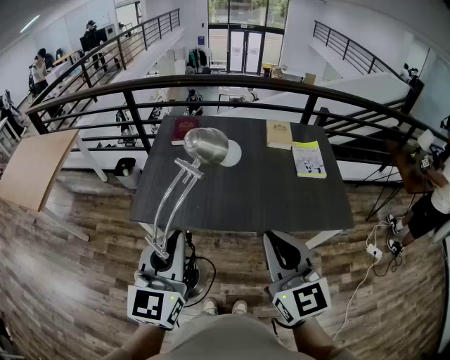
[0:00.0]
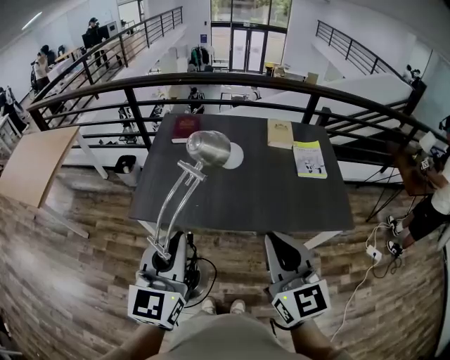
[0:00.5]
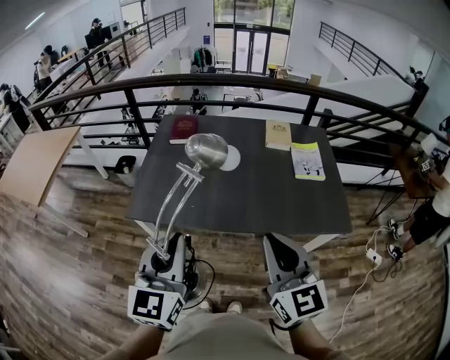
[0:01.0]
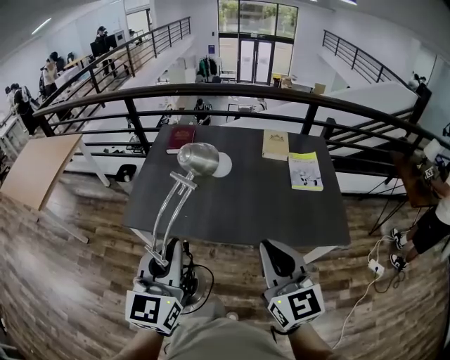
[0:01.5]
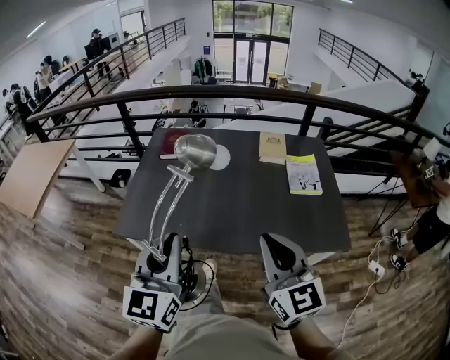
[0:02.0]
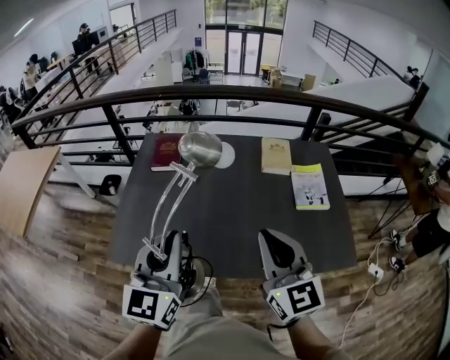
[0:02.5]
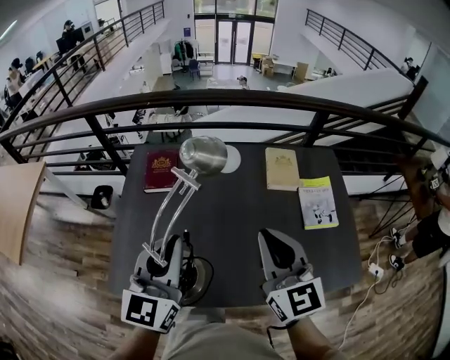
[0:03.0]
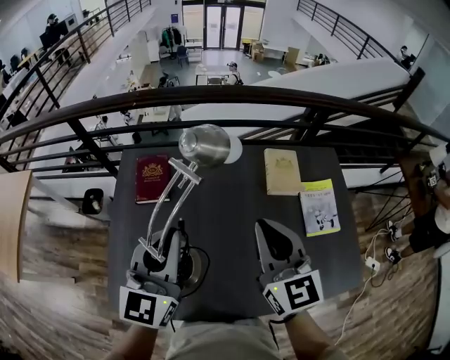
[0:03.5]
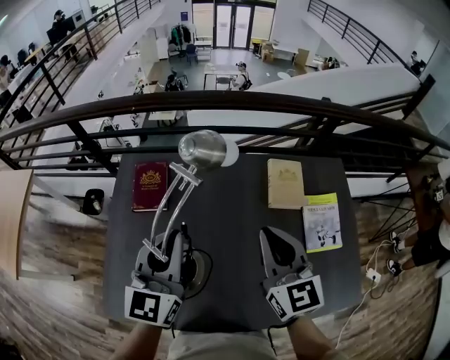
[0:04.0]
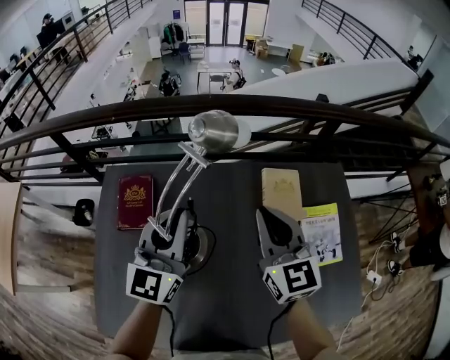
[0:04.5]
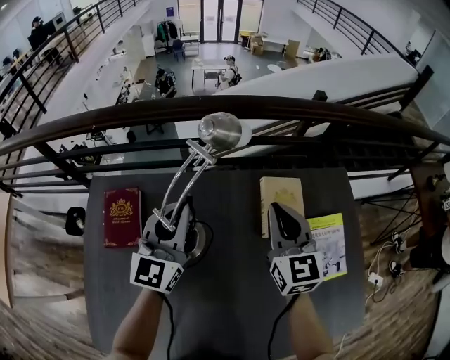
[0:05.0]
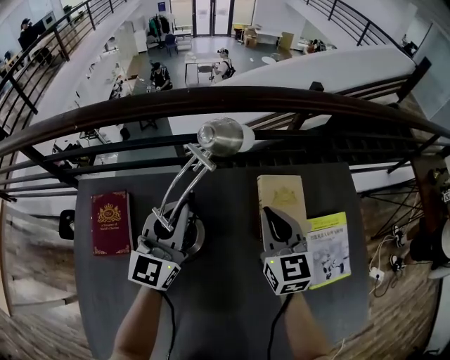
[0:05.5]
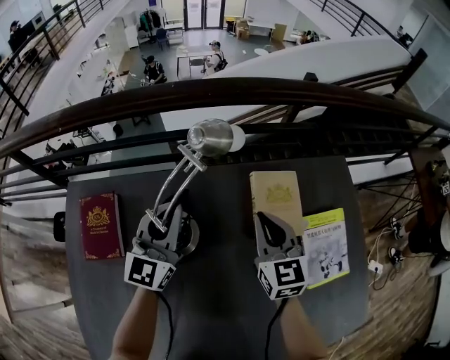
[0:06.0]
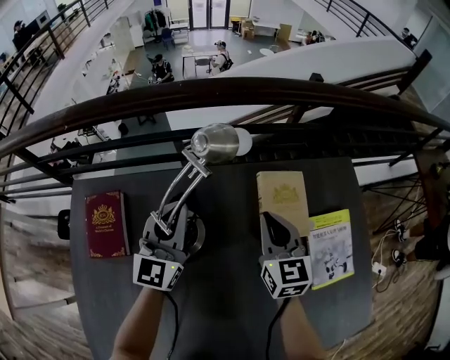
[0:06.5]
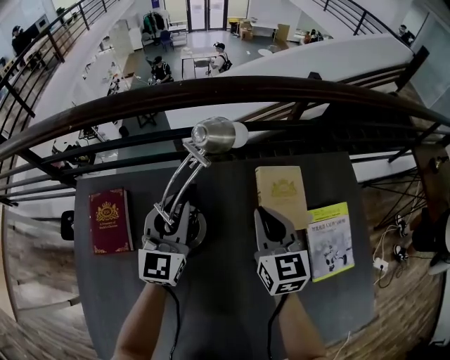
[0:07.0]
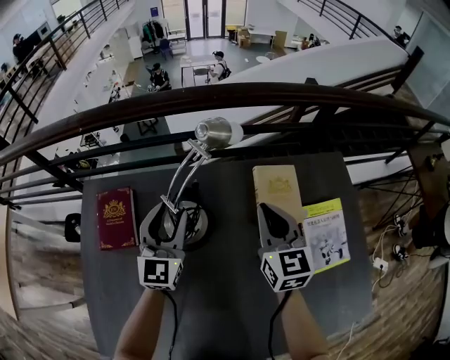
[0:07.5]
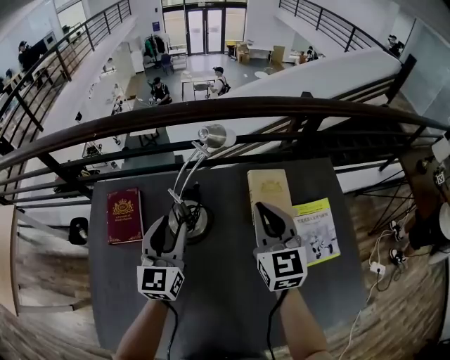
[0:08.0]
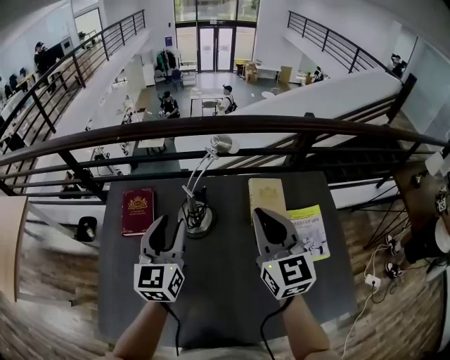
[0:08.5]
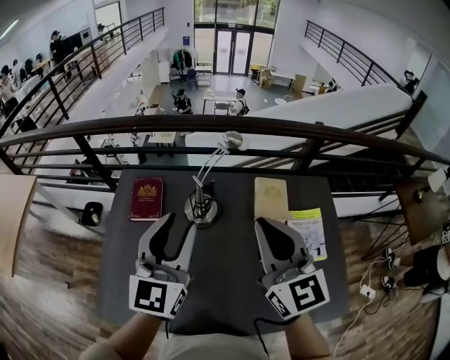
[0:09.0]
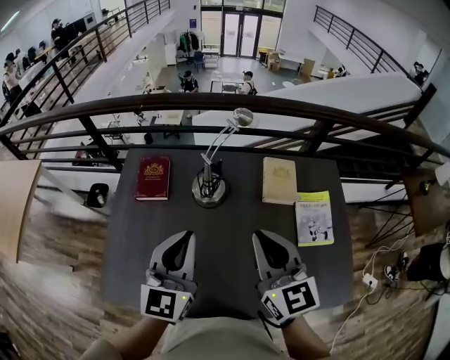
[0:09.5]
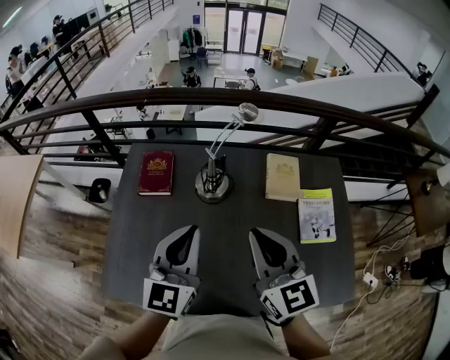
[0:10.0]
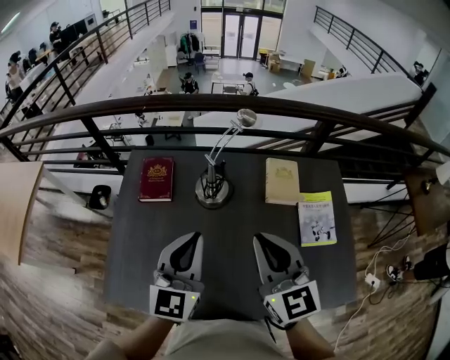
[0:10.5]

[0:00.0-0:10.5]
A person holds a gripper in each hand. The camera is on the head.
0:00.0 to 0:02.0: Both grippers travel together to the right and forward, about 10 cm.
0:02.0 to 0:04.0: The two grippers travel together, forward, roughly 50 cm.
0:04.0 to 0:06.5: The two grippers go roughly 35 cm forward and downward.
0:06.5 to 0:08.5: The left gripper is displaced backward and upward by about 25 cm, and opens; the right gripper is displaced upward and backward by approximately 30 cm.
0:08.5 to 0:10.5: The left gripper shifts approximately 15 cm backward, and closes its fingers. The right gripper is displaced backward and to the left by some 15 cm.

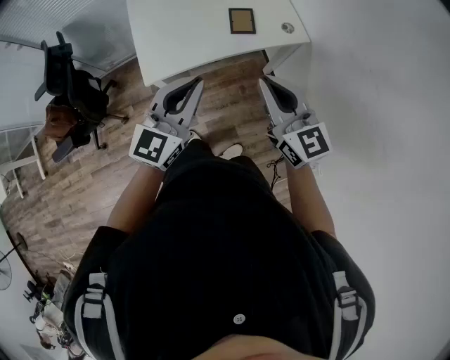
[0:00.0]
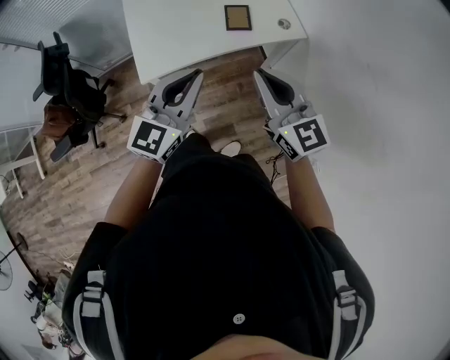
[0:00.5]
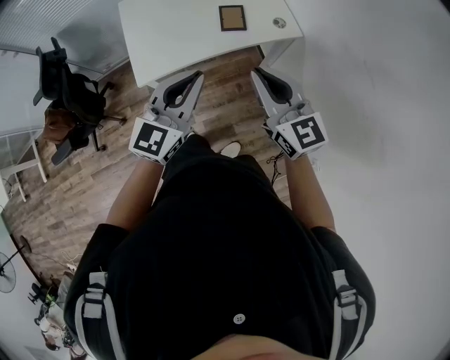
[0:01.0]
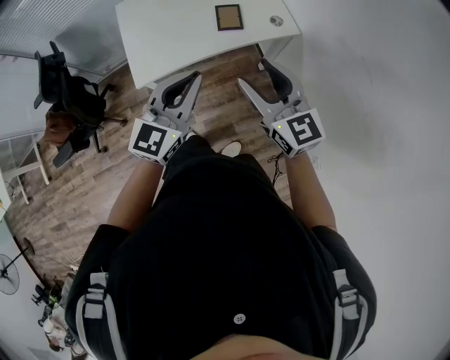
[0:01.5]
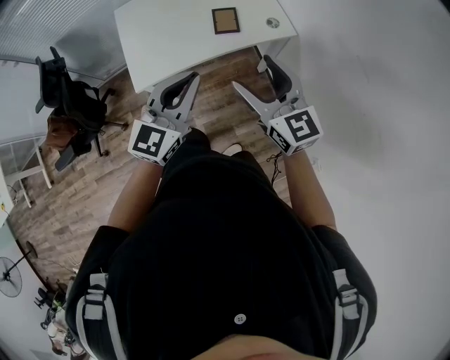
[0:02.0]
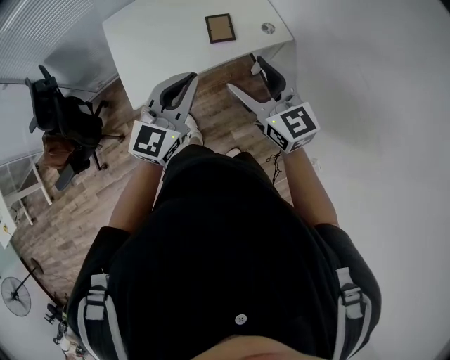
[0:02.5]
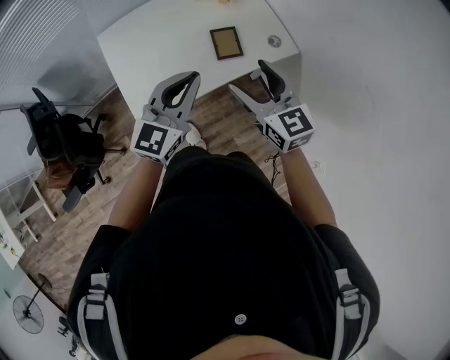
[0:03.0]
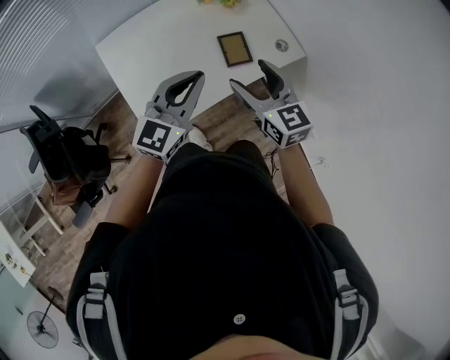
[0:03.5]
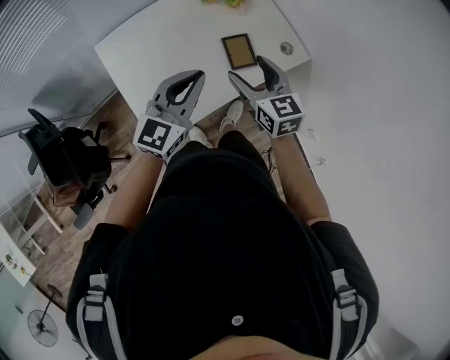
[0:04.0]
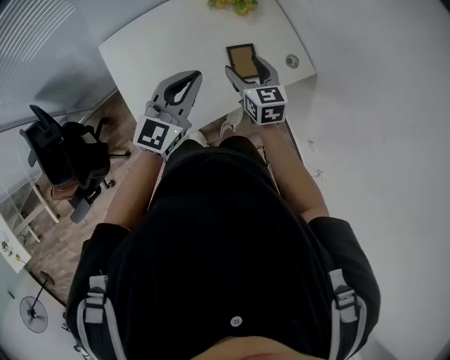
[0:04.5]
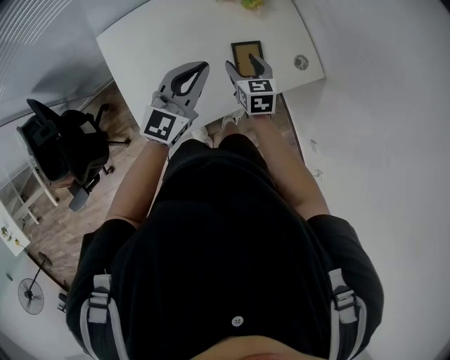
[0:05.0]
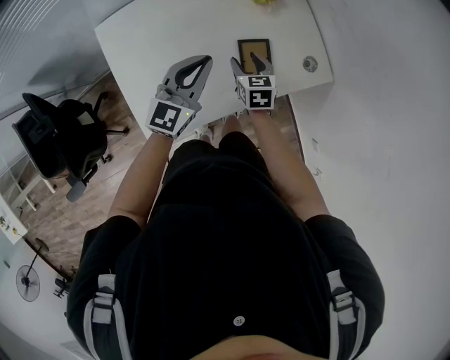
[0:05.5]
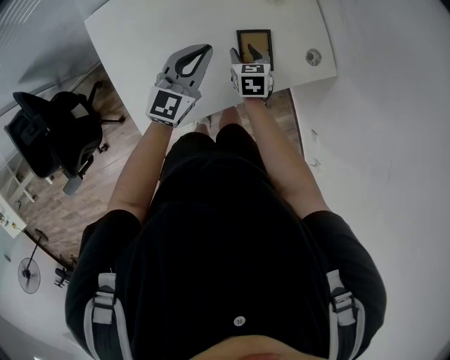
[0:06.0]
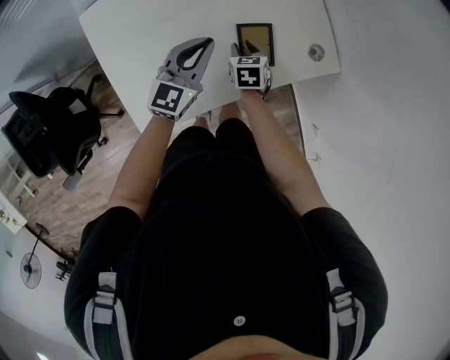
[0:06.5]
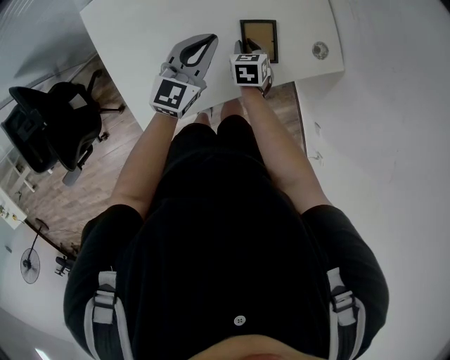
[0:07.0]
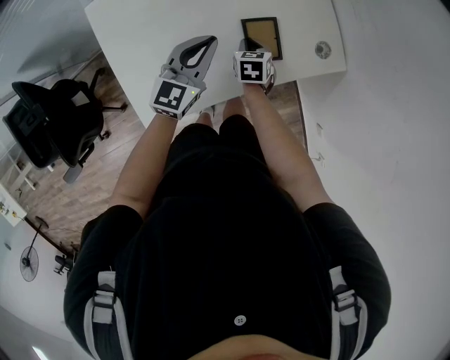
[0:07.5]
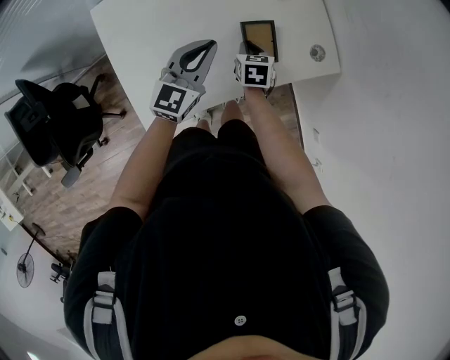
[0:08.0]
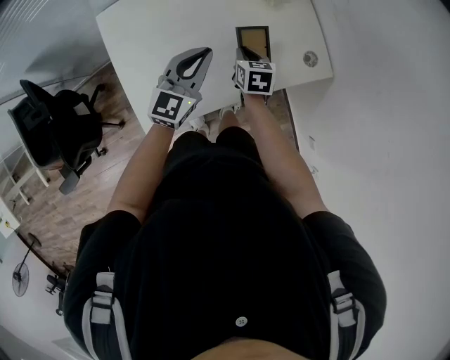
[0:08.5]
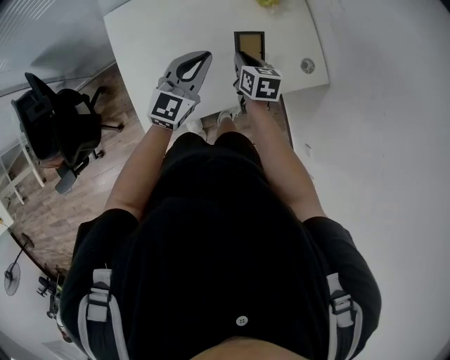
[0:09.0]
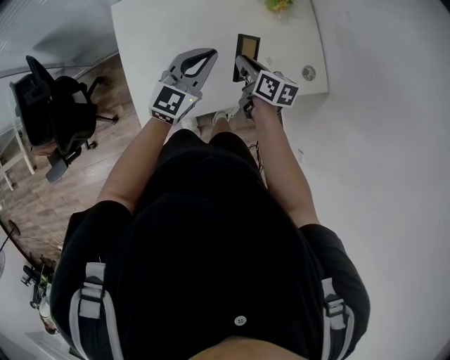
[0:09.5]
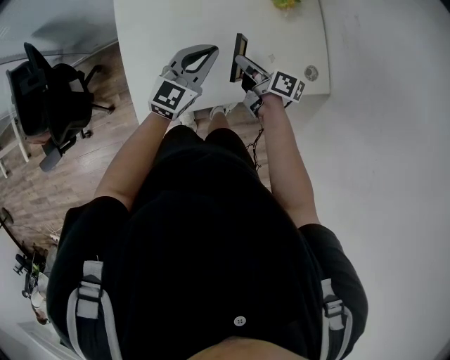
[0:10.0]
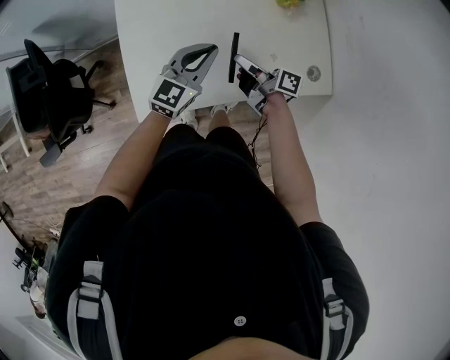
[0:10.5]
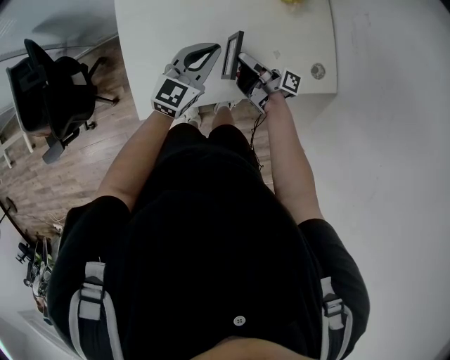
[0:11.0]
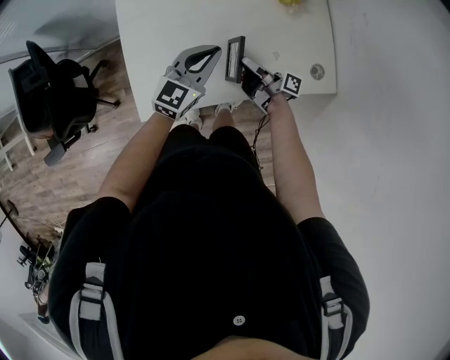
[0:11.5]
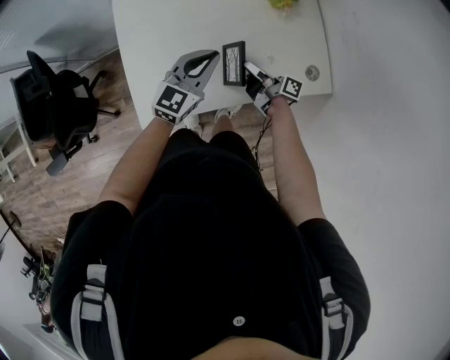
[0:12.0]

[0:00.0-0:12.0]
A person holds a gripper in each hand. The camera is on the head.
0:00.0 to 0:02.0: The left gripper shifts about 5 cm to the right. The right gripper opens its fingers.
0:02.0 to 0:04.0: The right gripper goes roughly 35 cm forward, to the left and downward, and rotates approximately 30 degrees. The left gripper moves forward and to the left, about 30 cm.
0:04.0 to 0:06.0: Both grippers travel together downward and forward, roughly 25 cm. The right gripper swivels approximately 30 degrees, and closes its fingers.
0:06.0 to 0:08.0: The right gripper closes up.
0:08.0 to 0:10.0: The right gripper is displaced upward and to the left by about 10 cm, and angles its fingers upward, by roughly 30 degrees.
0:10.0 to 0:12.0: The right gripper heads downward, covering approximately 5 cm, and turns by some 20 degrees.

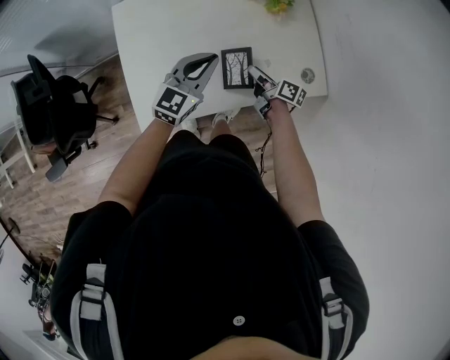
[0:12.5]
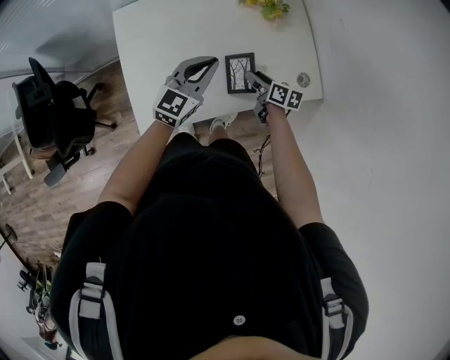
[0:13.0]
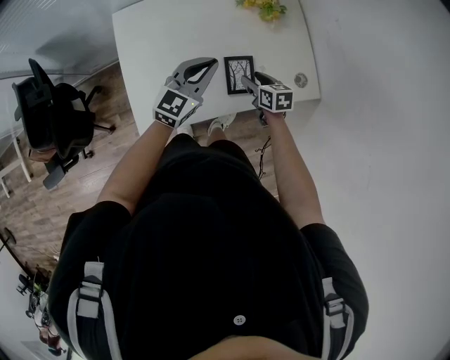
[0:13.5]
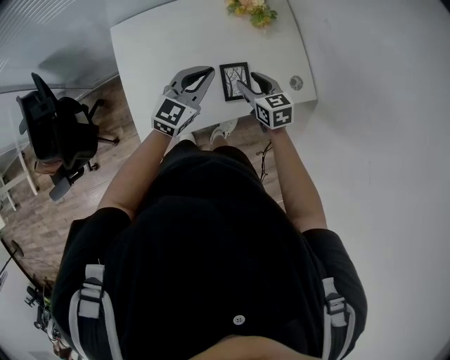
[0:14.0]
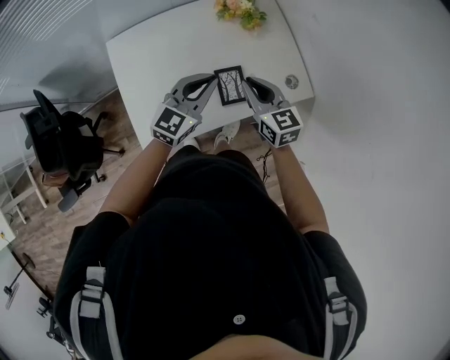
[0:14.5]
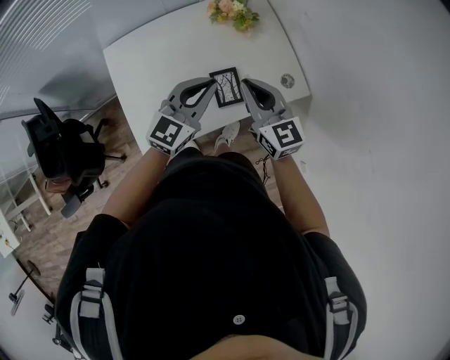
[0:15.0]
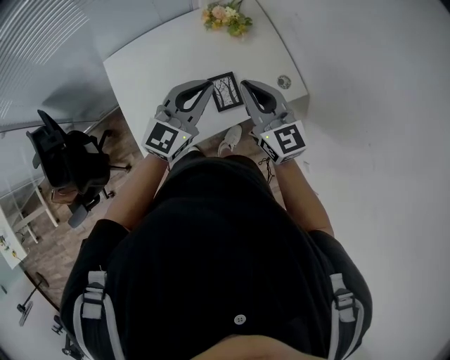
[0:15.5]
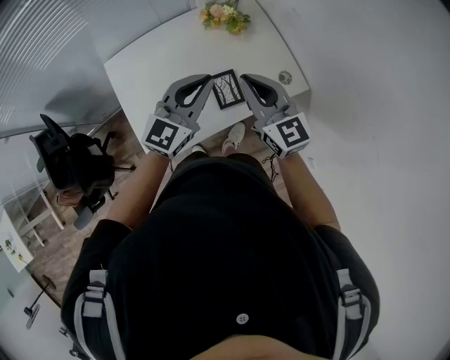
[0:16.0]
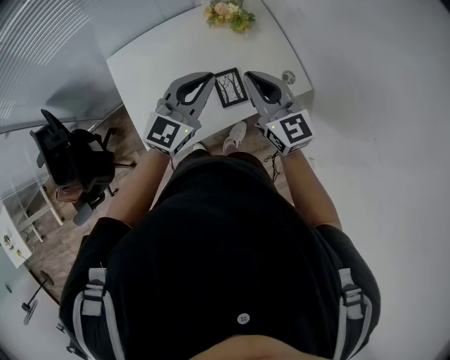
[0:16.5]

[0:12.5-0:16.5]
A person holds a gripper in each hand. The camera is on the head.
0:12.5 to 0:14.5: The left gripper travels upward by approximately 5 cm. Meanwhile the right gripper moves upward, approximately 20 cm, and twists about 60 degrees counterclockwise, seen from behind.
0:14.5 to 0:16.5: Both grippers travel together upward, roughly 10 cm.
